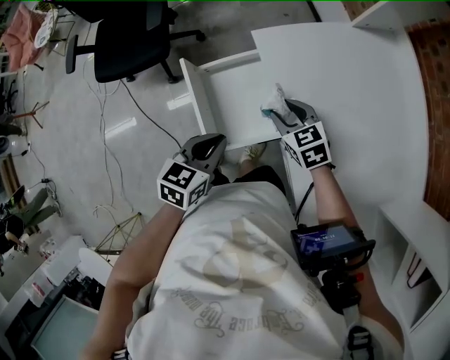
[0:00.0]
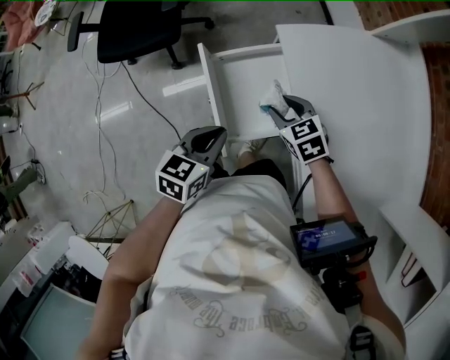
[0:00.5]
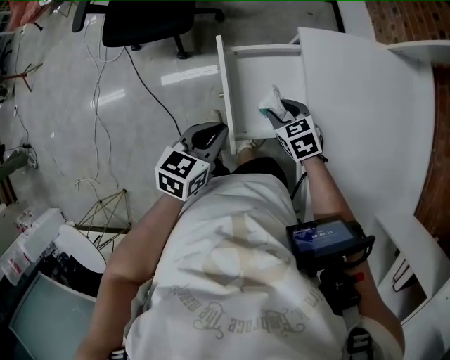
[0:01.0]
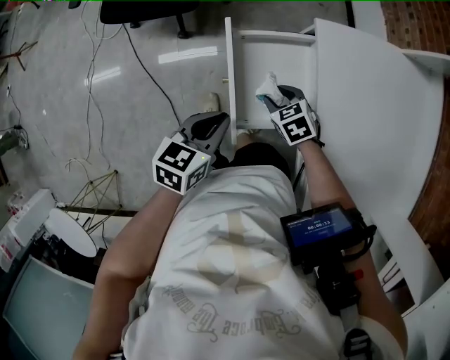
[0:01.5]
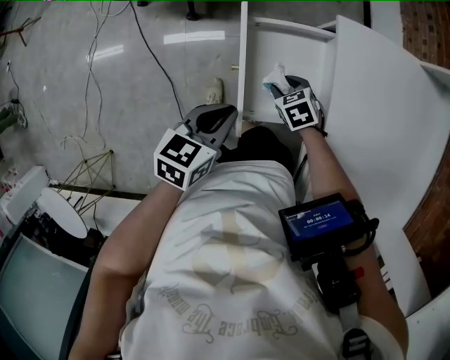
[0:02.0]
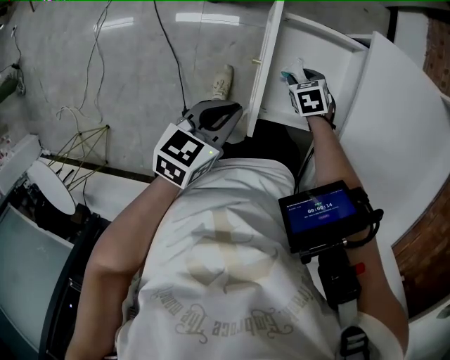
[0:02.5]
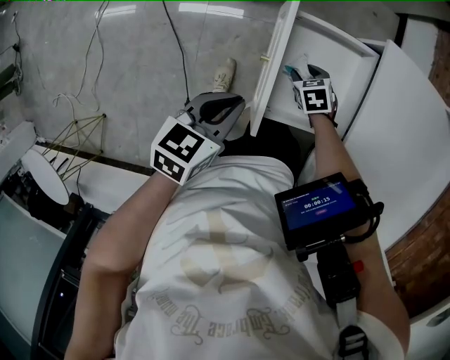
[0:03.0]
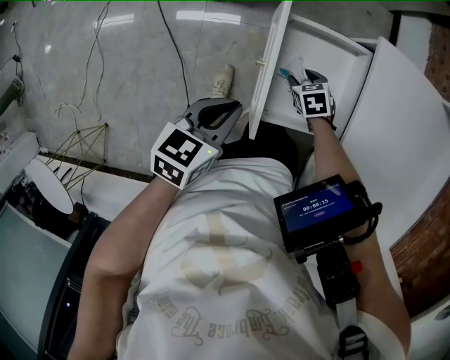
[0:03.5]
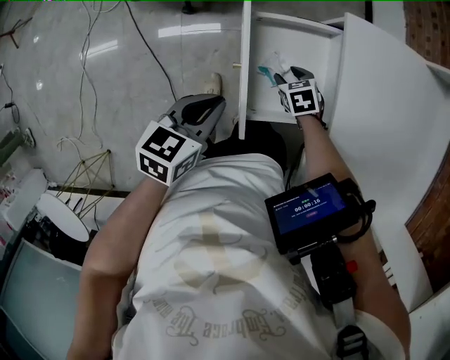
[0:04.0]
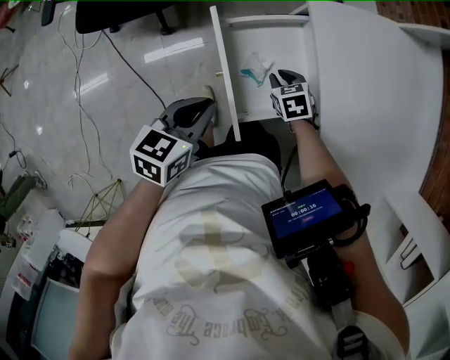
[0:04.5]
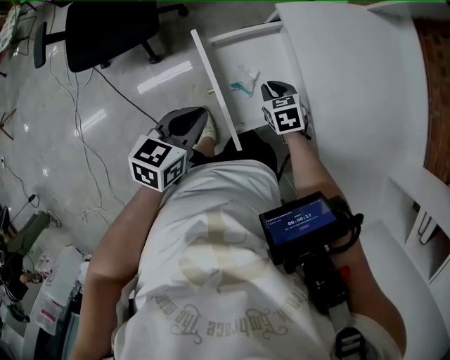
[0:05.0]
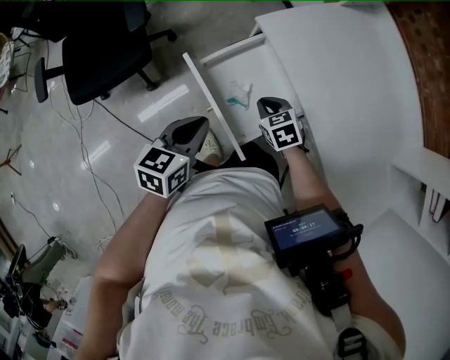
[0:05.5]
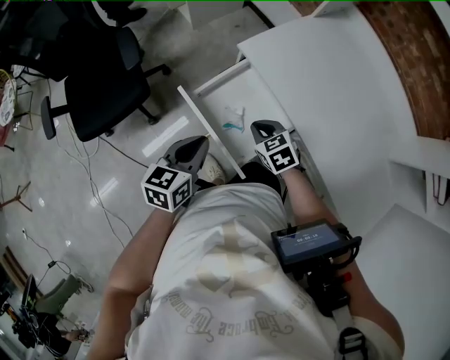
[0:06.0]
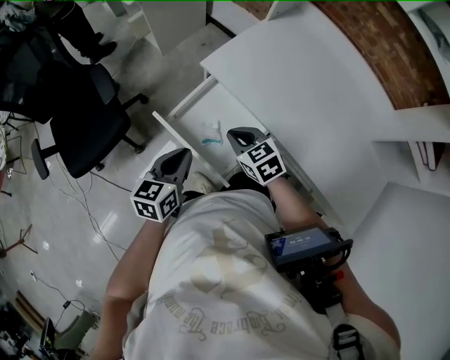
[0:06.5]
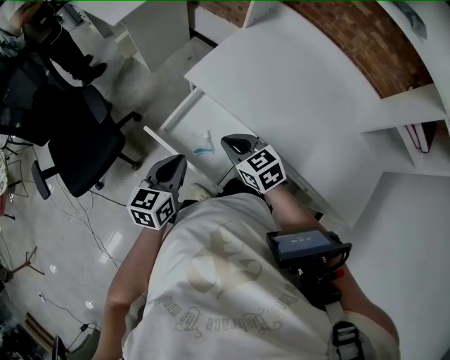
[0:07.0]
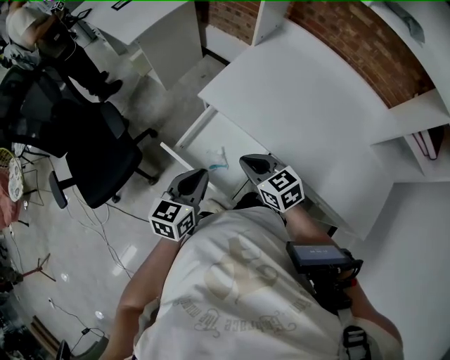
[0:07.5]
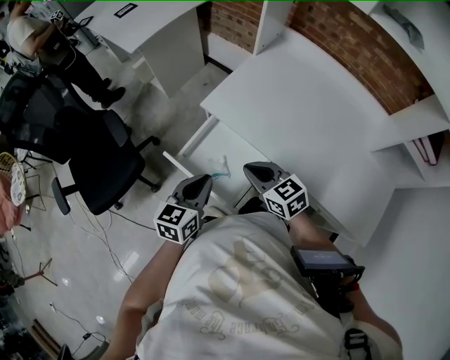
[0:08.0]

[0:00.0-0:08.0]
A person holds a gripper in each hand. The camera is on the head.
0.0 to 2.0 s: The left gripper is displaced to the left by some 10 cm. Meanwhile the right gripper shifts about 20 cm downward and to the left, and turns by roughly 30 degrees.
4.0 to 6.0 s: The left gripper changes place by about 5 cm, and turns by some 30 degrees, while the right gripper travels upward by about 15 cm, turns by about 30 degrees, and closes its fingers.
6.0 to 8.0 s: The right gripper moves upward, roughly 15 cm, and changes its angle by some 30 degrees; the left gripper shifts roughly 10 cm to the right and upward.

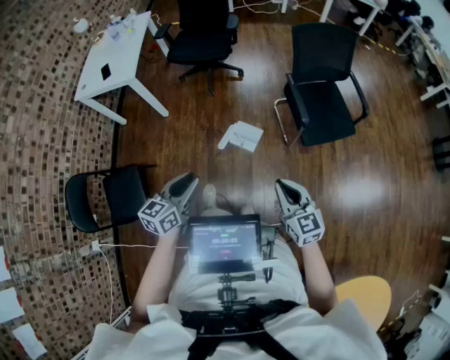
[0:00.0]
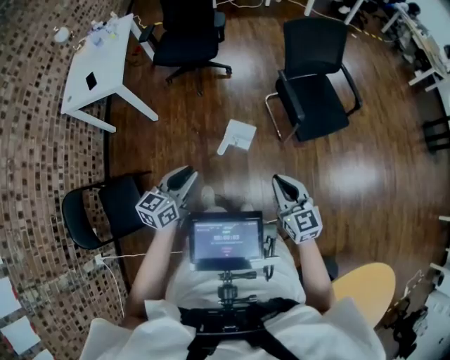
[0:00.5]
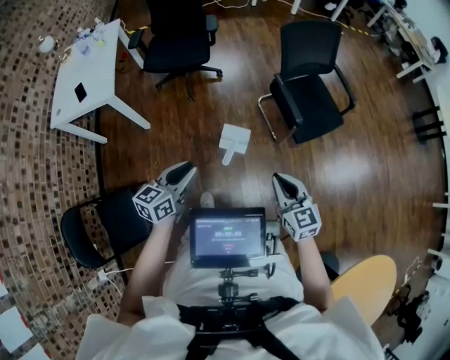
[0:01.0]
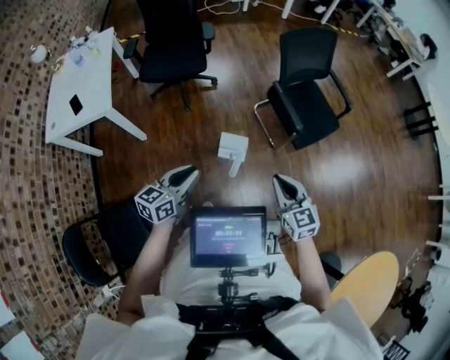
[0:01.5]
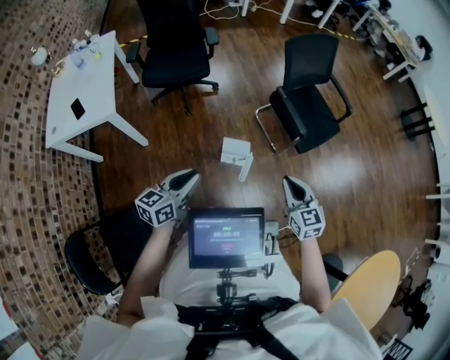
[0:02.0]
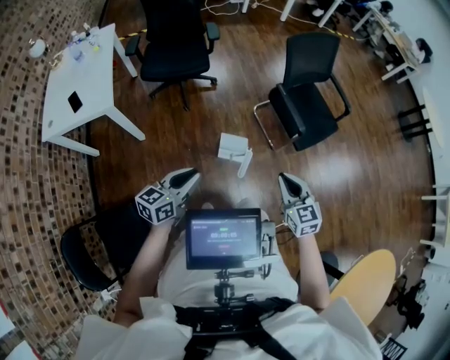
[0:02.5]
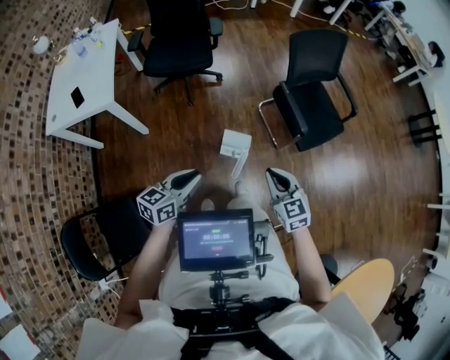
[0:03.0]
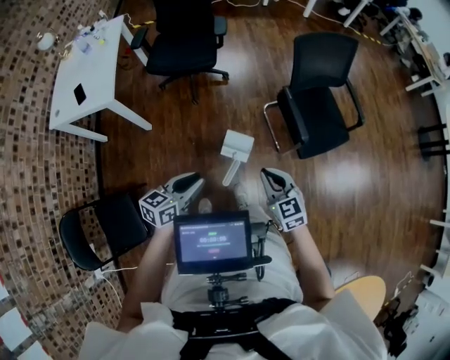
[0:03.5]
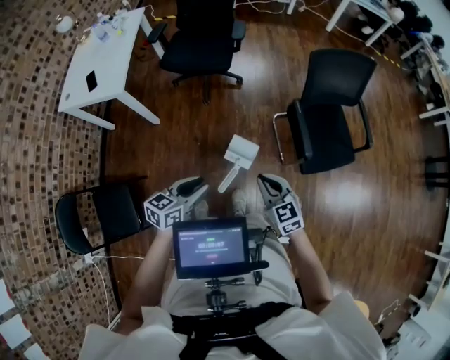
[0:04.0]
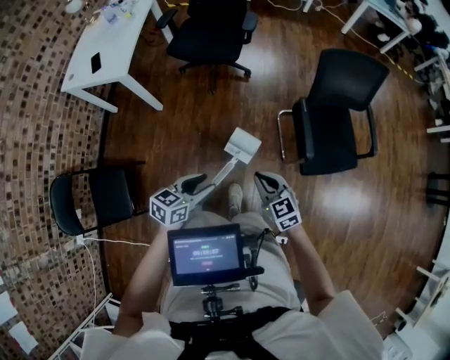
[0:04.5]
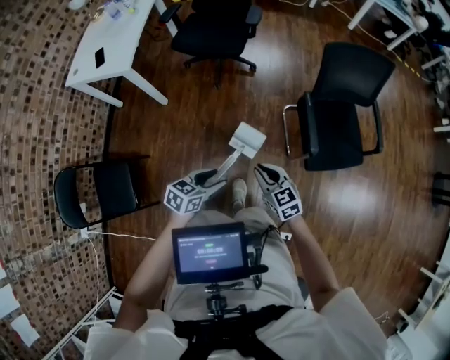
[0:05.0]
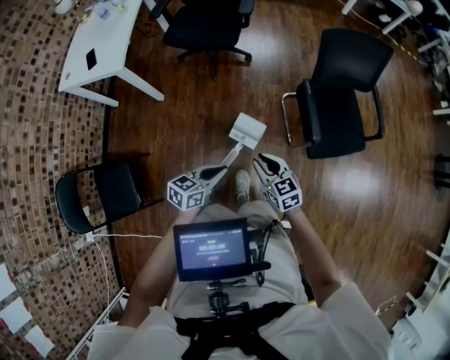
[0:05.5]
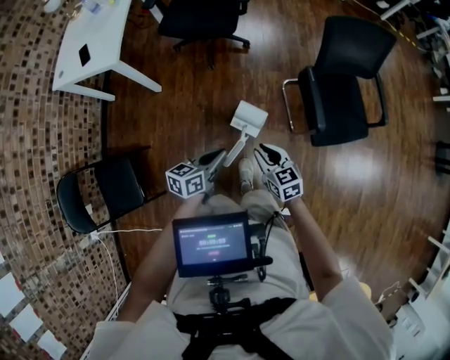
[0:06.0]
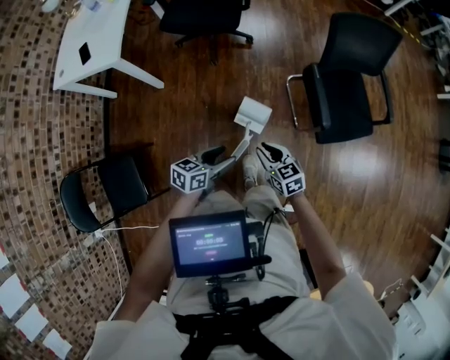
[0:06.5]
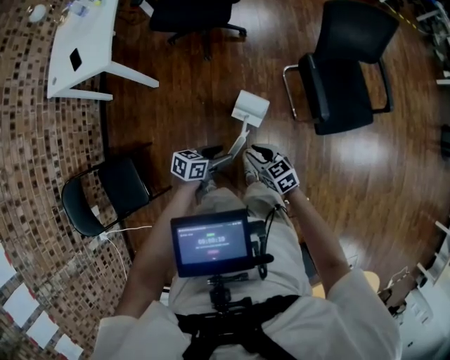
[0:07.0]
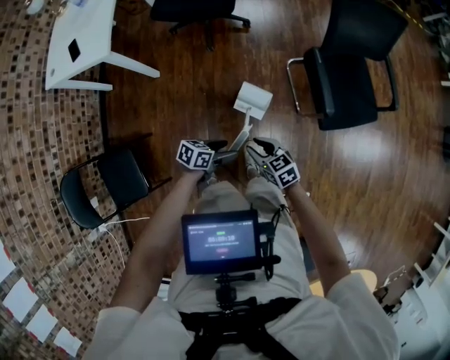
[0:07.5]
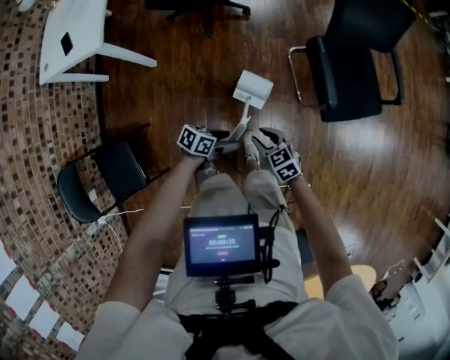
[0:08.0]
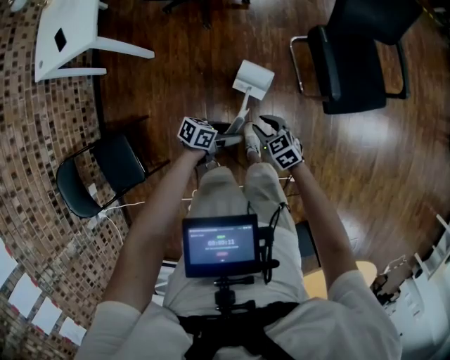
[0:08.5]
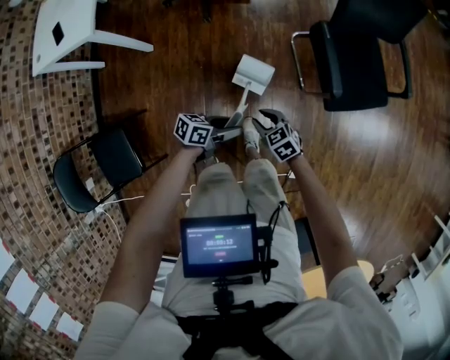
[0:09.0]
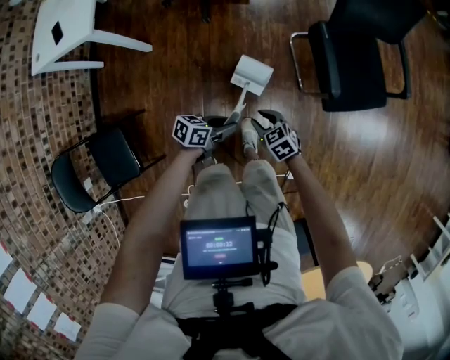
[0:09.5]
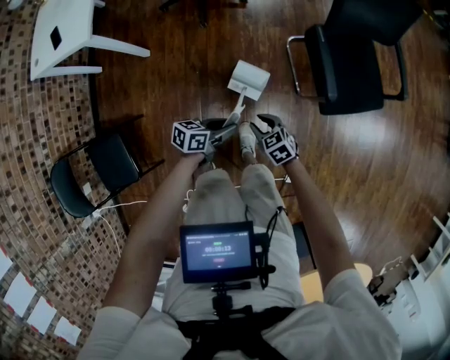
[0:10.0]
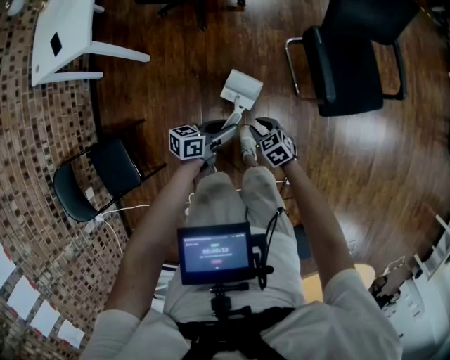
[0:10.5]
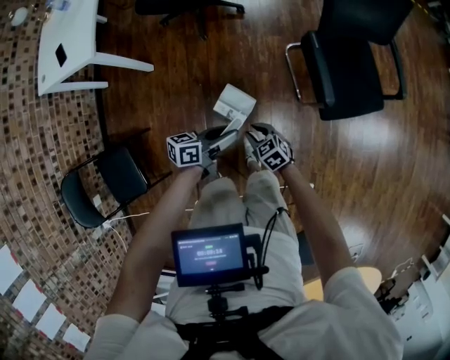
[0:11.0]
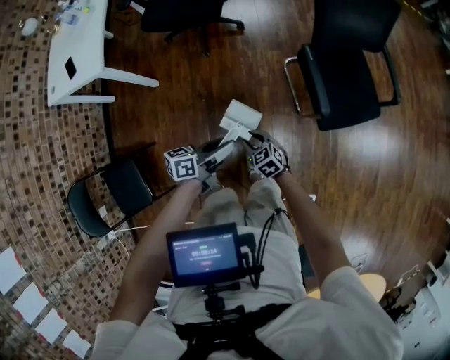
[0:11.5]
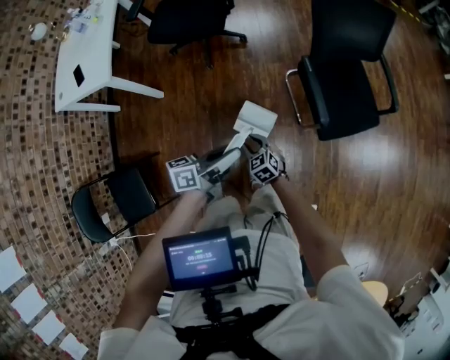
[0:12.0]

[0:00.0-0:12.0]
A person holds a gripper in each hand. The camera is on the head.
0.0 to 2.0 s: The grippers both shift to the left and forward by approximately 20 cm. The left gripper turns by about 20 degrees; the right gripper turns by roughly 20 degrees.
2.0 to 4.0 s: The right gripper goes roughly 10 cm forward, and rotates roughly 30 degrees. The left gripper heads to the right, covering roughly 10 cm.
4.0 to 6.0 s: The grippers both shift downward by roughly 10 cm.
6.0 to 8.0 s: The left gripper moves downward, about 15 cm, swivels roughly 40 degrees, and opens. The right gripper heads downward, covering about 10 cm.
8.0 to 10.0 s: The right gripper goes about 5 cm downward. The left gripper closes its fingers.
10.0 to 12.0 s: The left gripper is displaced upward by roughly 20 cm, and changes its angle by some 30 degrees. Meanwhile the right gripper moves roughly 5 cm.

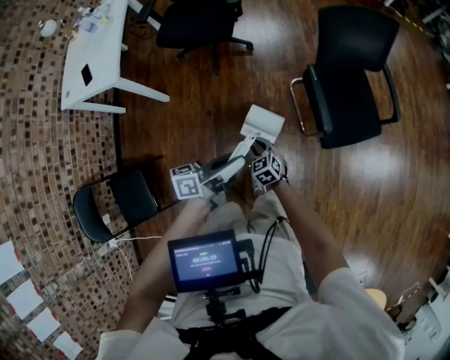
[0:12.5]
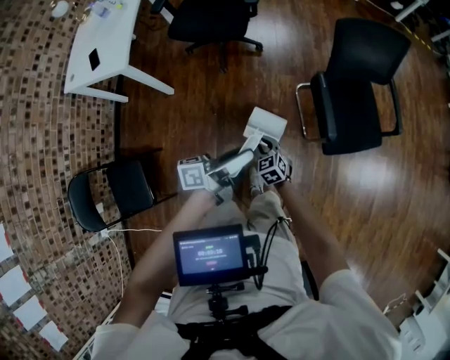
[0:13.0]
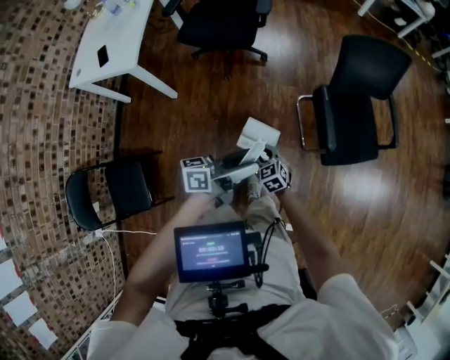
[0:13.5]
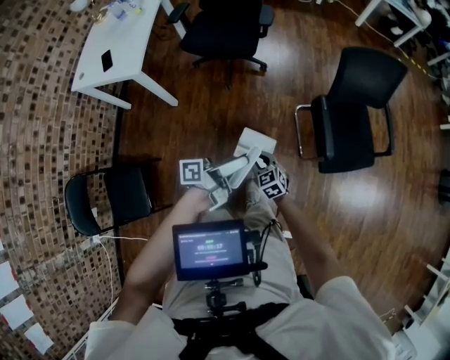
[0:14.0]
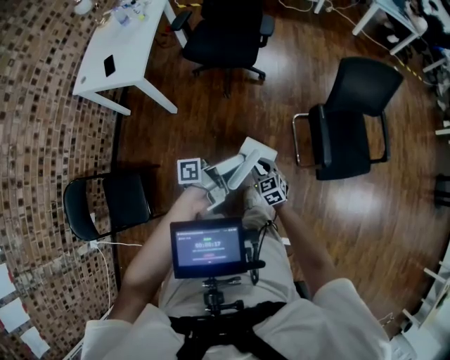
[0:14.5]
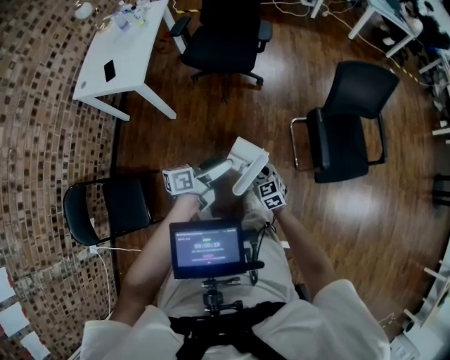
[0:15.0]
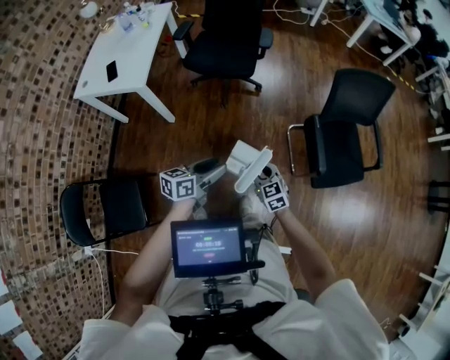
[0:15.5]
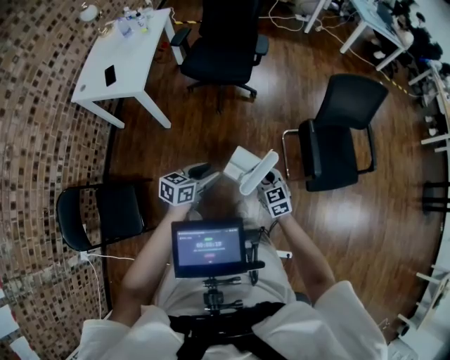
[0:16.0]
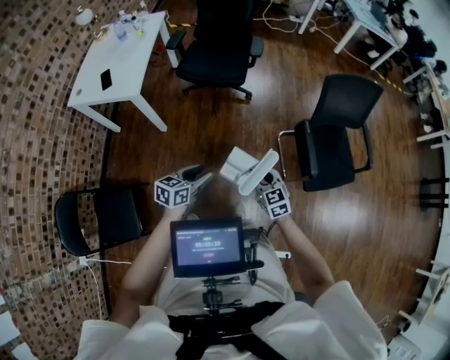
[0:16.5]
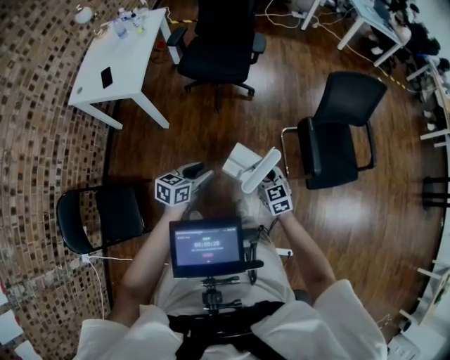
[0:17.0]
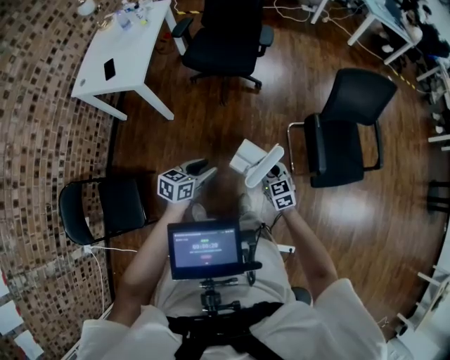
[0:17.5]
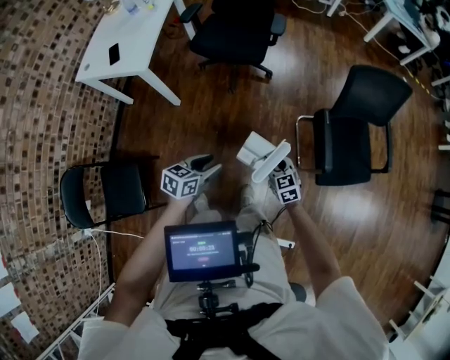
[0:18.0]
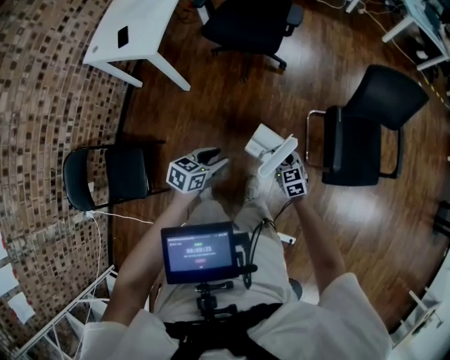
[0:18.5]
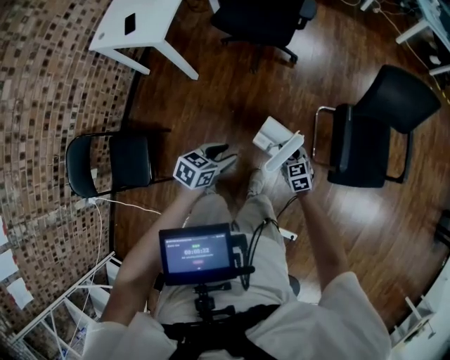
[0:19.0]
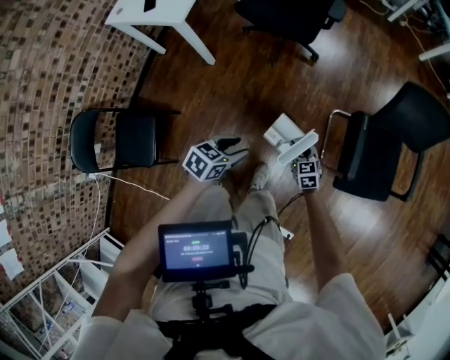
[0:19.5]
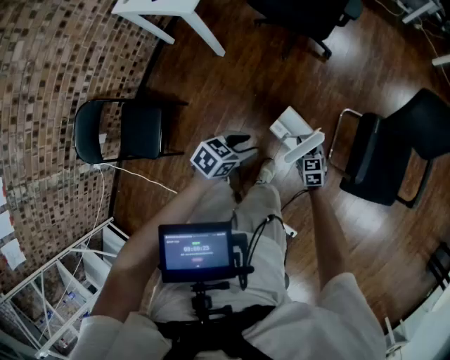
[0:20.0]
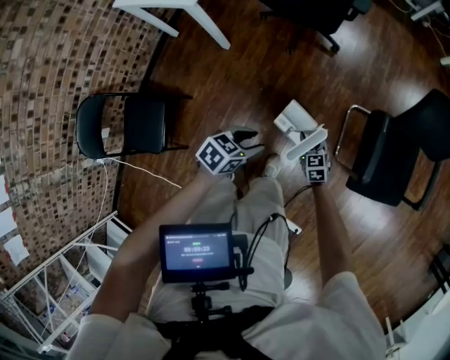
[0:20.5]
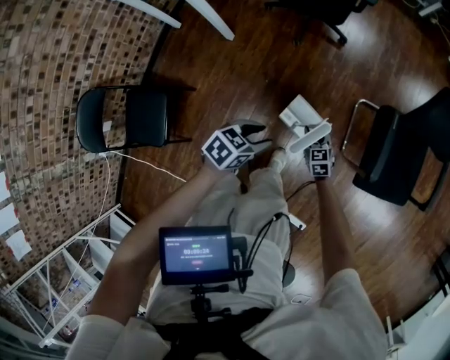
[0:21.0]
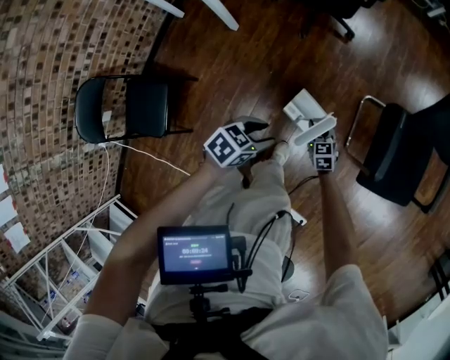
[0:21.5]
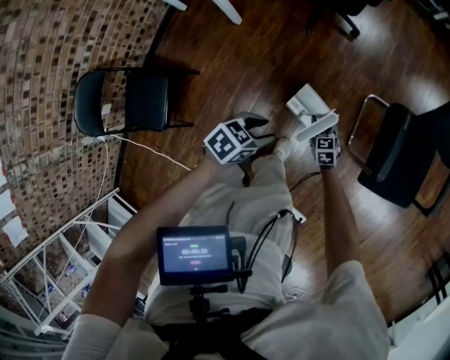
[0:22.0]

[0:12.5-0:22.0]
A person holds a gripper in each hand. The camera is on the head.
12.5 to 14.5 s: The right gripper shifts about 10 cm upward and to the left, while the left gripper travels to the left by roughly 10 cm, swivels some 20 degrees, and opens.
14.5 to 16.5 s: The right gripper moves upward, some 10 cm, while the left gripper travels to the left and downward by about 15 cm, tilts its fingers about 40 degrees downward, and closes.
16.5 to 18.0 s: The right gripper shifts some 10 cm downward.
18.0 to 20.0 s: The left gripper shifts by approximately 5 cm, while the right gripper travels downward by some 10 cm.
20.0 to 22.0 s: The left gripper is displaced downward by approximately 5 cm, while the right gripper heads downward, covering roughly 10 cm.
